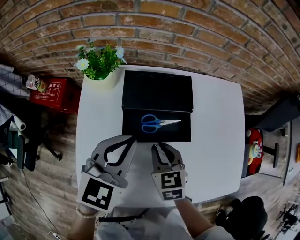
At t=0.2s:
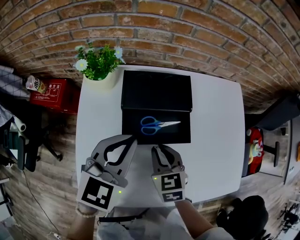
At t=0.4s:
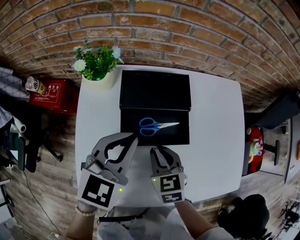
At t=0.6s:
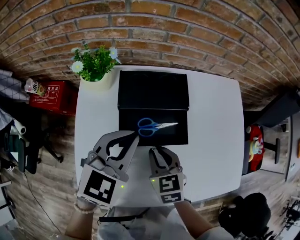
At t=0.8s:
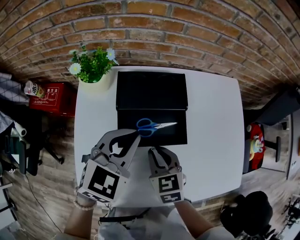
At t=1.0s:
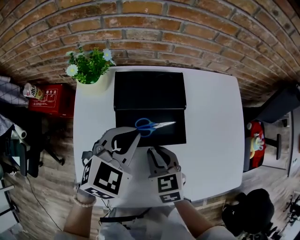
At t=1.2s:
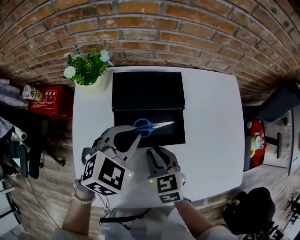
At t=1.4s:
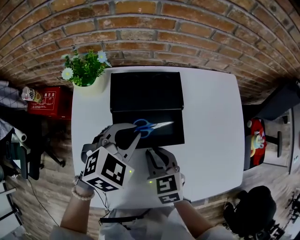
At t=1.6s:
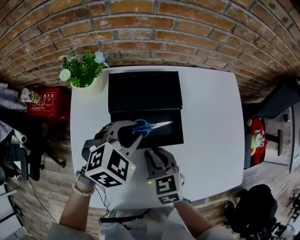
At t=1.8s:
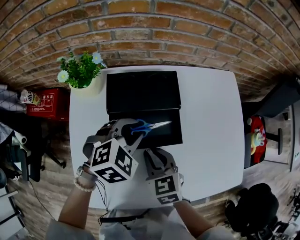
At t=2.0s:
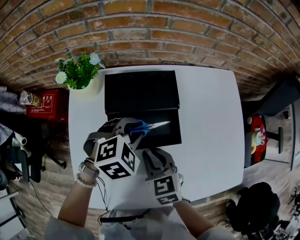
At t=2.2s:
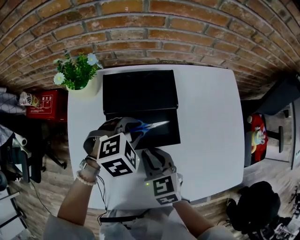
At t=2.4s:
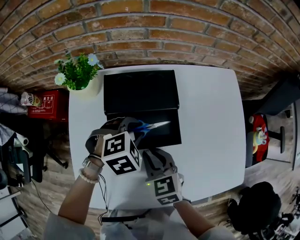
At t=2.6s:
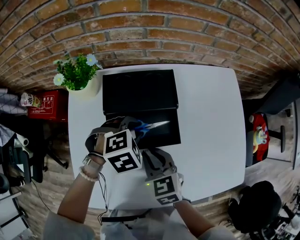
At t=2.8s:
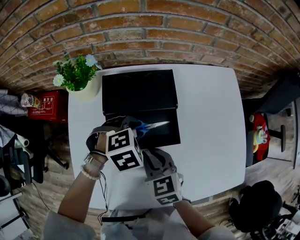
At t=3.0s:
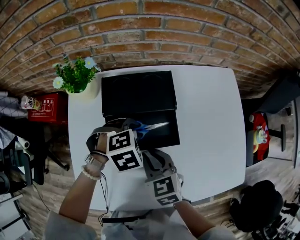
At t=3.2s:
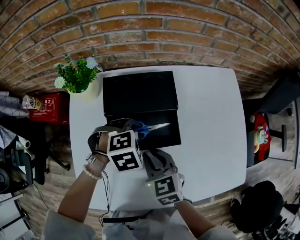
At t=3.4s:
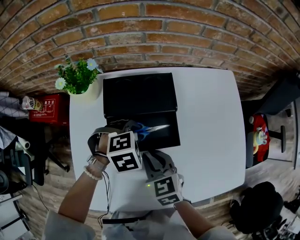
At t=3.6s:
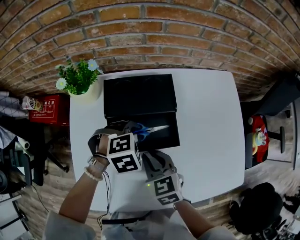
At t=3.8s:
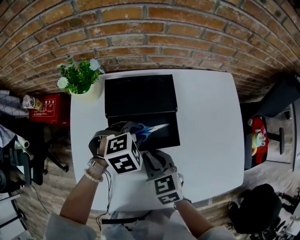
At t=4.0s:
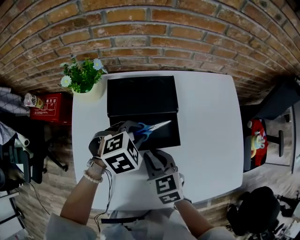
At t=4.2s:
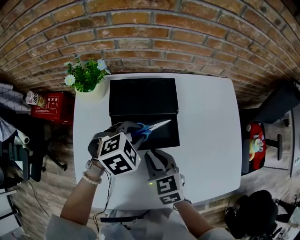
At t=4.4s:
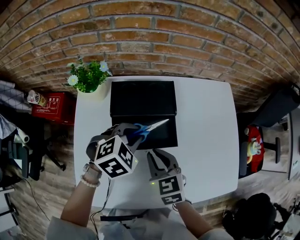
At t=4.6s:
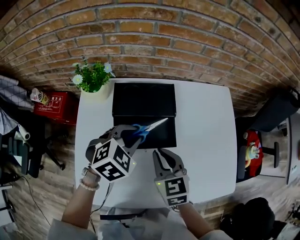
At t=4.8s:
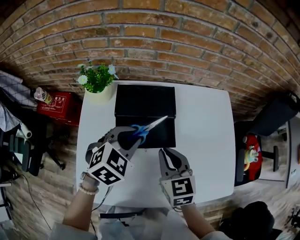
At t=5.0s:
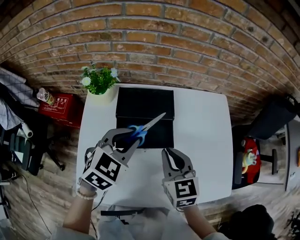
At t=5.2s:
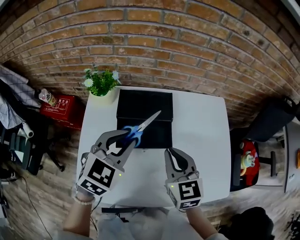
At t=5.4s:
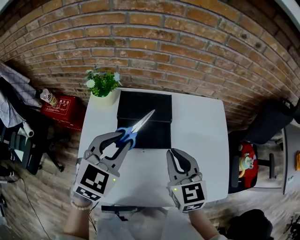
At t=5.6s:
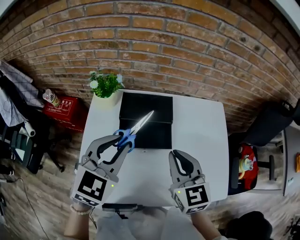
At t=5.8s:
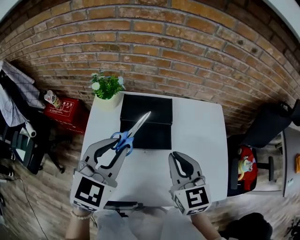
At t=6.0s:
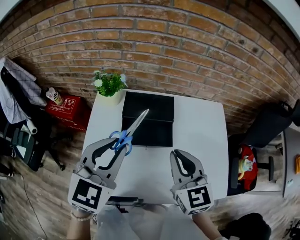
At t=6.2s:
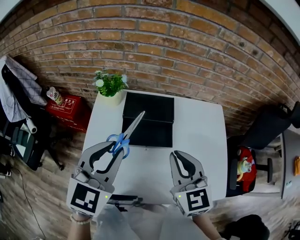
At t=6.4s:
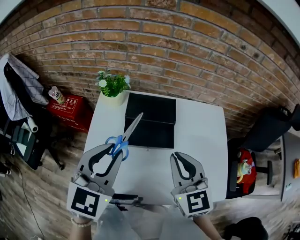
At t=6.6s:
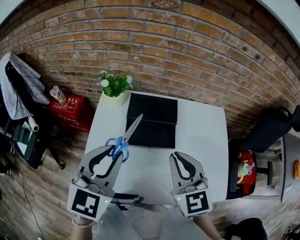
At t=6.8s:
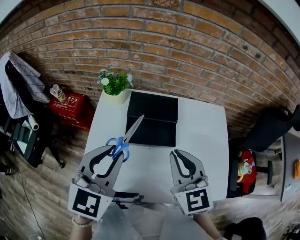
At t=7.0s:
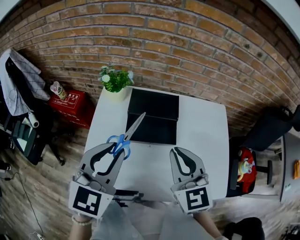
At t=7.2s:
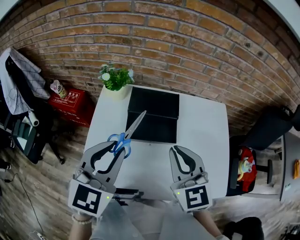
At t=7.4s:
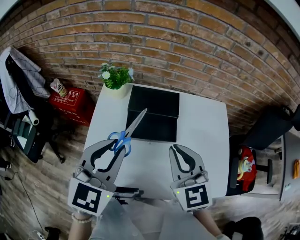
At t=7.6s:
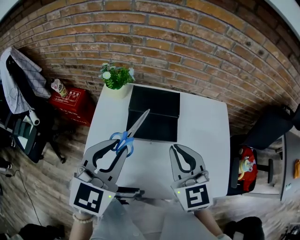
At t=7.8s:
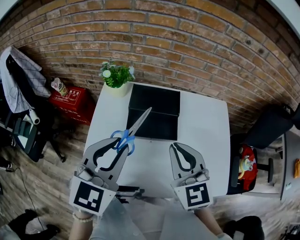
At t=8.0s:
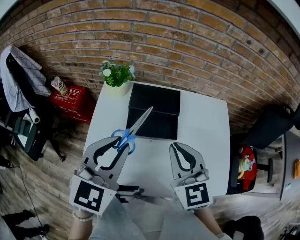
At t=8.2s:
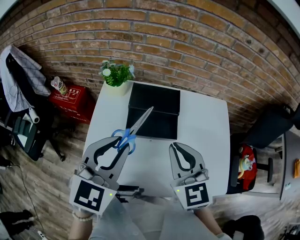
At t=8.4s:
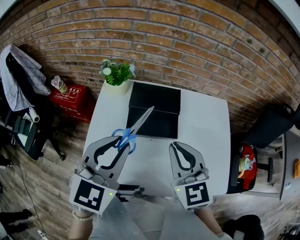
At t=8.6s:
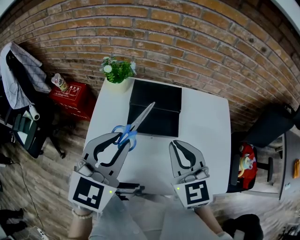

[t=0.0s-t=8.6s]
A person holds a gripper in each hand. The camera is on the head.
t=0.0s to t=1.4s: The left gripper goes some 5 cm downward, and swivels some 30 degrees.
t=1.4s to t=2.8s: The left gripper goes approximately 10 cm downward, rotates approximately 30 degrees, and opens.
t=2.8s to t=4.4s: The left gripper moves upward, roughly 5 cm.
t=4.4s to t=5.8s: The right gripper is displaced upward and to the right by about 20 cm; the left gripper is displaced upward and backward by approximately 25 cm, and tilts its fingers roughly 40 degrees upward.
t=5.8s to t=7.2s: The left gripper shifts by about 5 cm, while the right gripper changes place by approximately 5 cm.
t=7.2s to t=8.6s: Both grippers stay about where they are.

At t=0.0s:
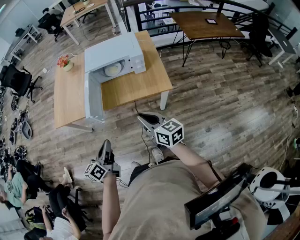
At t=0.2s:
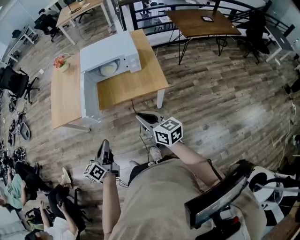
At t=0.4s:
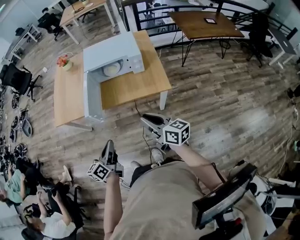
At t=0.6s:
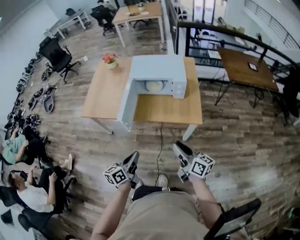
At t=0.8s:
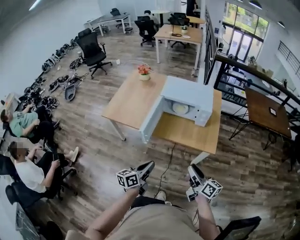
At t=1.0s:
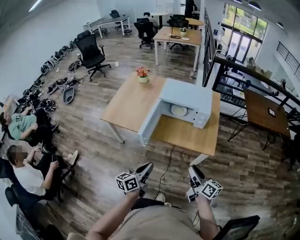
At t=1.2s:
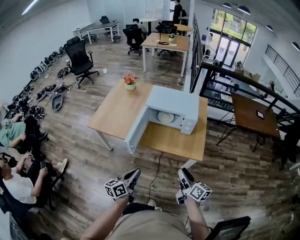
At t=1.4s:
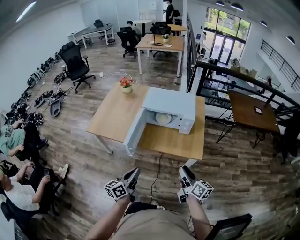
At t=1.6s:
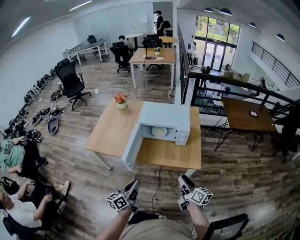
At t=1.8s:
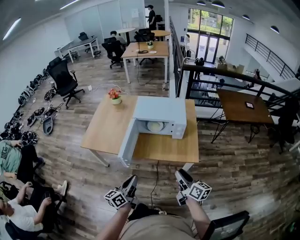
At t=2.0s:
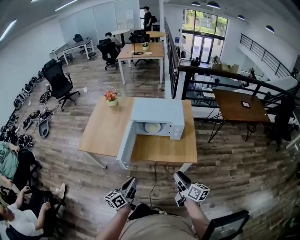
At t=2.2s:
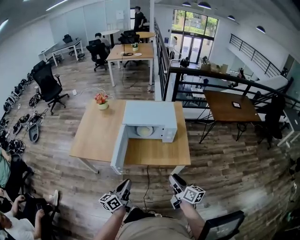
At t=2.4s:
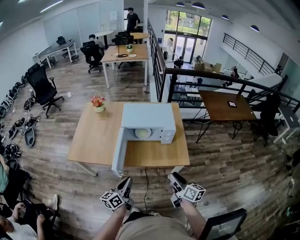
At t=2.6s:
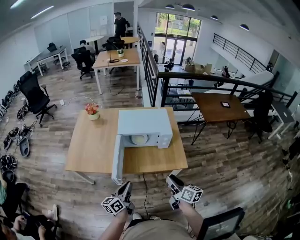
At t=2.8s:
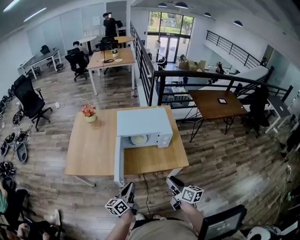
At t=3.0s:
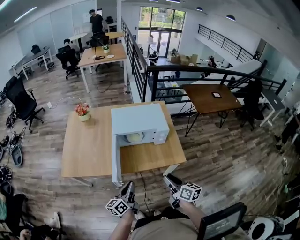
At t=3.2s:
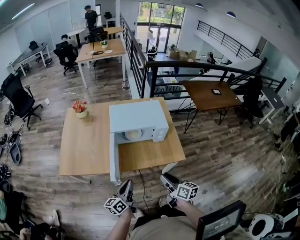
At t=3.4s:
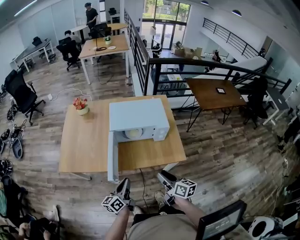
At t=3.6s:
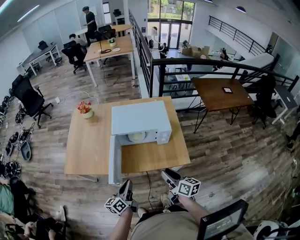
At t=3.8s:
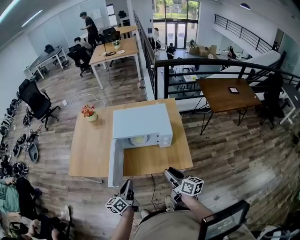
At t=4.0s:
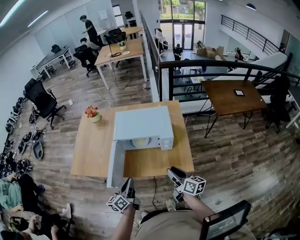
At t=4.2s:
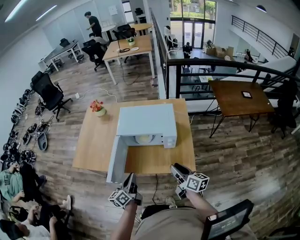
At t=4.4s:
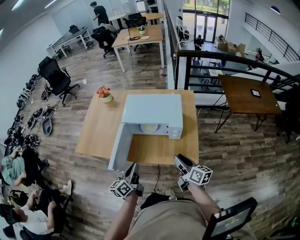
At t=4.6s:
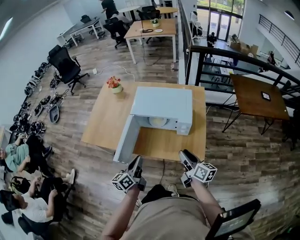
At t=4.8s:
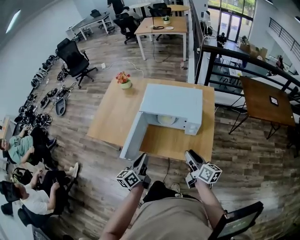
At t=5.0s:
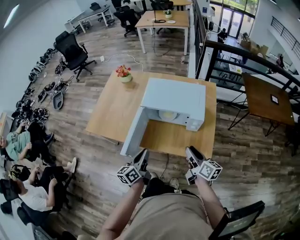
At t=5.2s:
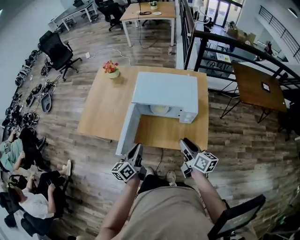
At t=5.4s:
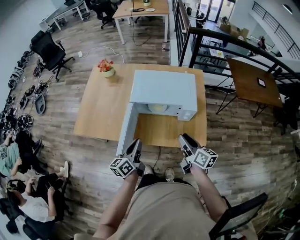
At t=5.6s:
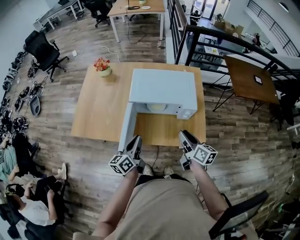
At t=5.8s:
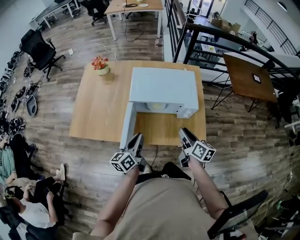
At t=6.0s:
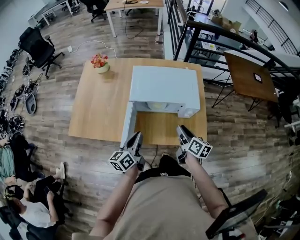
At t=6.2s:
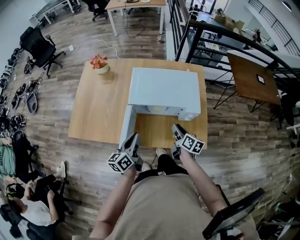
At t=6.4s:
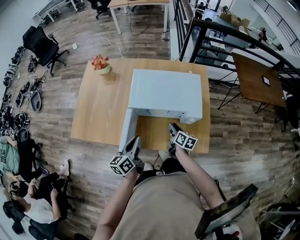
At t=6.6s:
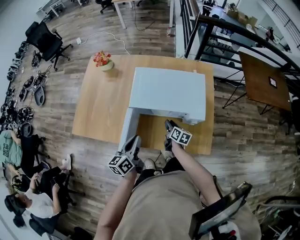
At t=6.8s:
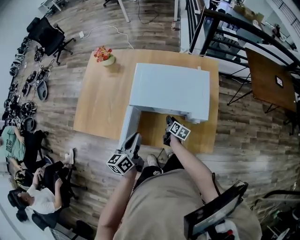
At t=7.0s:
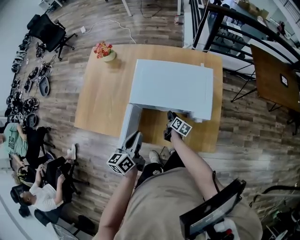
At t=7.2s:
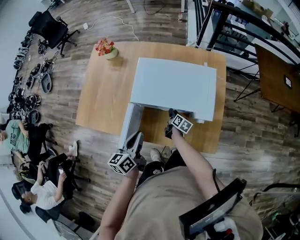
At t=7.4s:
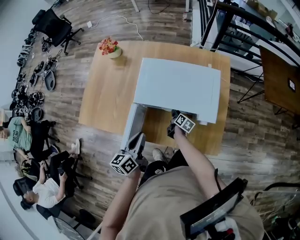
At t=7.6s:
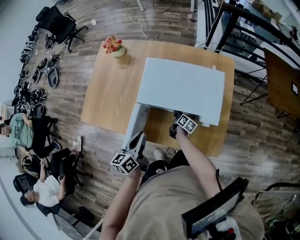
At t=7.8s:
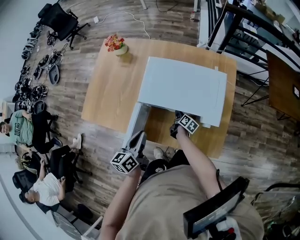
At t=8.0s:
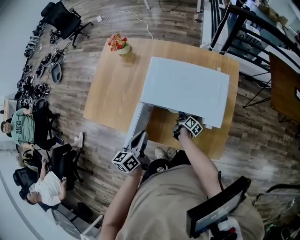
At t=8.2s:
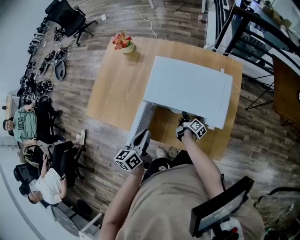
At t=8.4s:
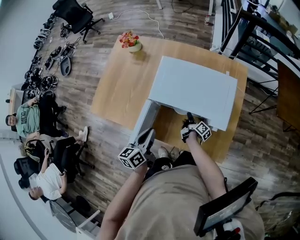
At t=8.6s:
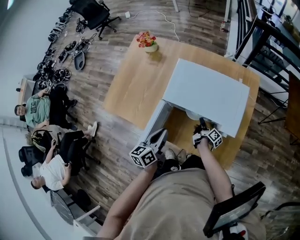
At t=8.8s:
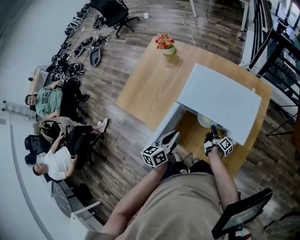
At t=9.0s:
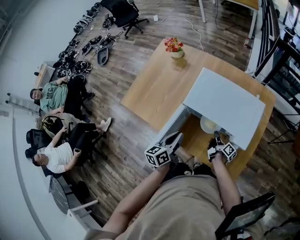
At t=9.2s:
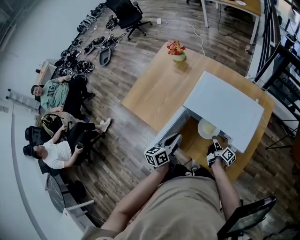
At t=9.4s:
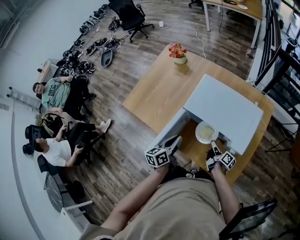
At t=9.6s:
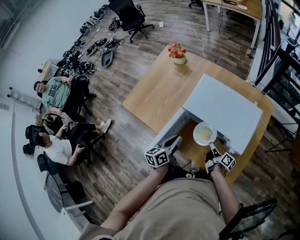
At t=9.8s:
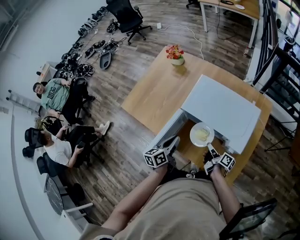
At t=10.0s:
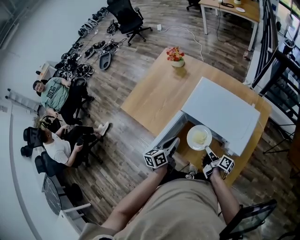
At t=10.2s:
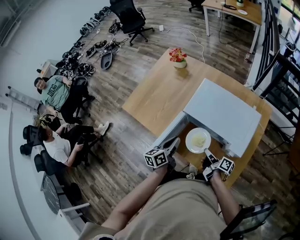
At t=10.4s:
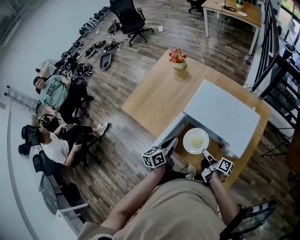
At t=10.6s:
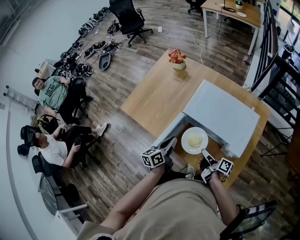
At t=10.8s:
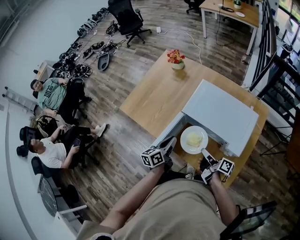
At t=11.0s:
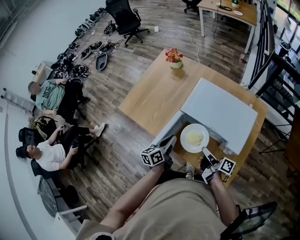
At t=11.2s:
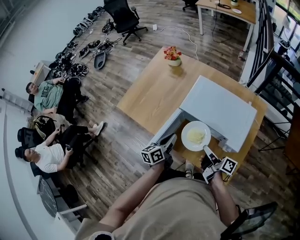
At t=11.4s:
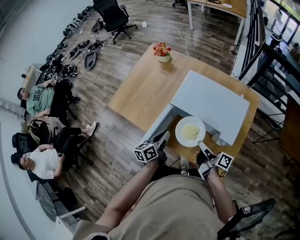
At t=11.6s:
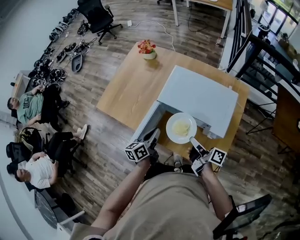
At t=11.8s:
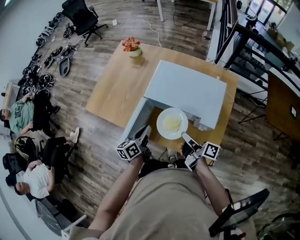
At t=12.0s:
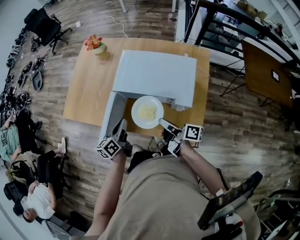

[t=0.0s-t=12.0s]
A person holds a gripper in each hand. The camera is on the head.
t=0.0s to t=1.6s: The right gripper travels to the right by some 5 cm.
t=1.6s to t=3.0s: The left gripper goes some 15 cm forward and to the left. The right gripper moves to the left and forward, roughly 10 cm.
t=3.0s to t=4.4s: The left gripper goes about 15 cm to the right and forward; the right gripper goes about 20 cm forward and to the right.
t=4.4s to t=6.0s: The right gripper moves forward, to the left and downward, about 15 cm. The left gripper is displaced forward and to the left by approximately 15 cm.
t=6.0s to t=7.6s: The right gripper moves downward and forward, some 35 cm, and rotates some 20 degrees, while the left gripper shifts some 5 cm forward.
t=7.6s to t=9.0s: The right gripper is displaced upward by about 5 cm, and changes its angle by about 30 degrees.
t=9.0s to t=10.4s: The right gripper travels upward, to the left and backward by roughly 15 cm, and turns by roughly 20 degrees.
t=10.4s to t=12.0s: The right gripper moves upward, roughly 10 cm.

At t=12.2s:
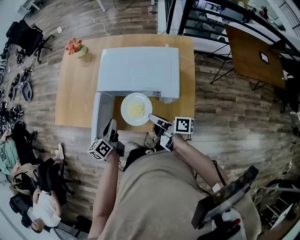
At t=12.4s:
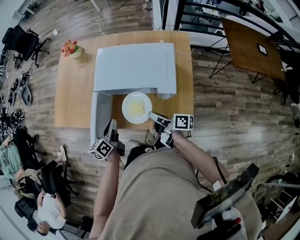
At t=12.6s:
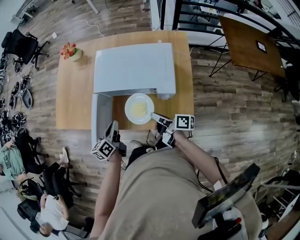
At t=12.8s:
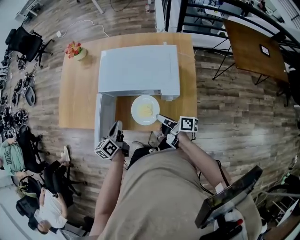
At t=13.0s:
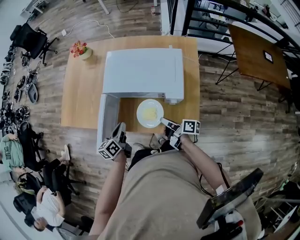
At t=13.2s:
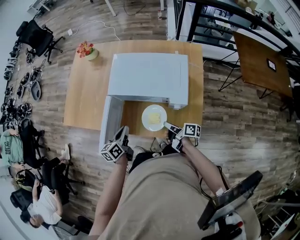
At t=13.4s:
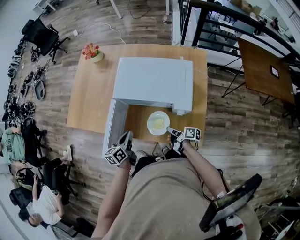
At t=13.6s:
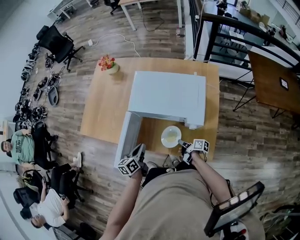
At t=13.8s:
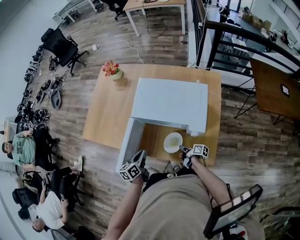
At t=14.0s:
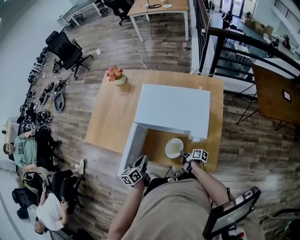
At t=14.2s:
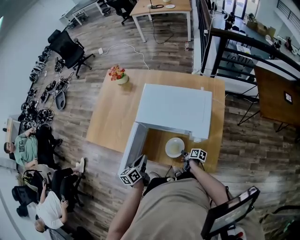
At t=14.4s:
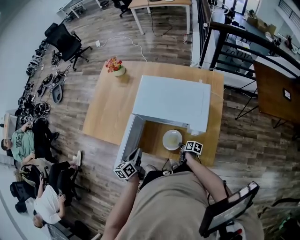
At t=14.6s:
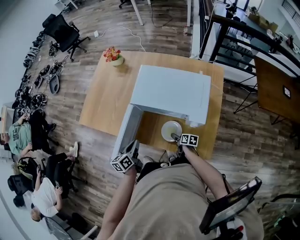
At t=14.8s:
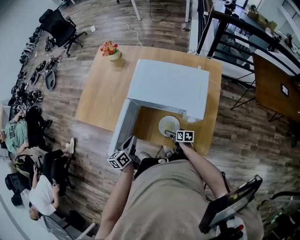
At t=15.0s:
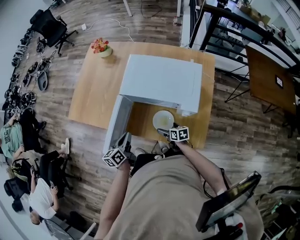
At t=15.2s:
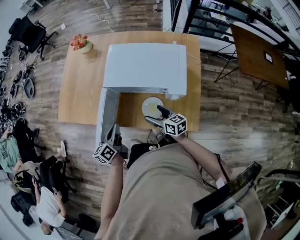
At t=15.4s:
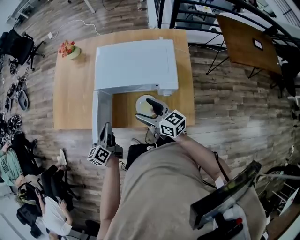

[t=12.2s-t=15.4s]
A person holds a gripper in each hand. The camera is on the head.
t=12.2s to t=13.8s: The right gripper moves downward, roughly 25 cm, and changes its angle by about 20 degrees; the left gripper shifts some 5 cm downward.
t=13.8s to t=15.4s: The right gripper moves upward, about 25 cm, rotates around the line of its fingers by some 60 degrees, counterclockwise from behind, and opens its fingers. Meanwhile the left gripper travels upward by roughly 5 cm.
